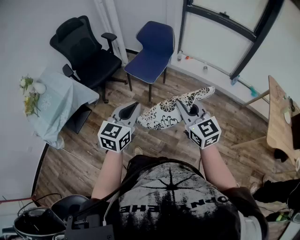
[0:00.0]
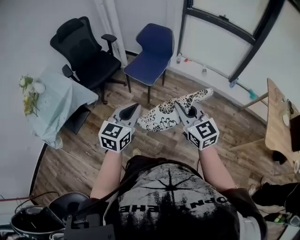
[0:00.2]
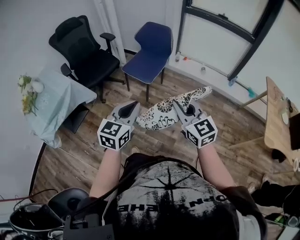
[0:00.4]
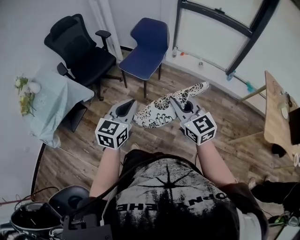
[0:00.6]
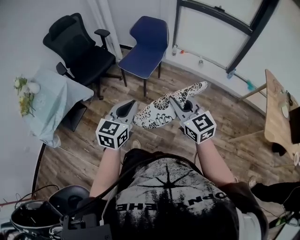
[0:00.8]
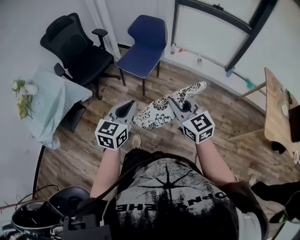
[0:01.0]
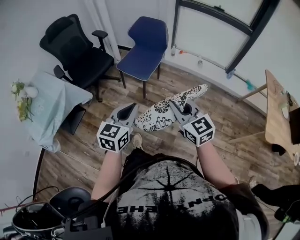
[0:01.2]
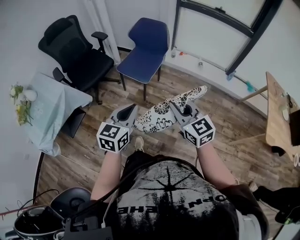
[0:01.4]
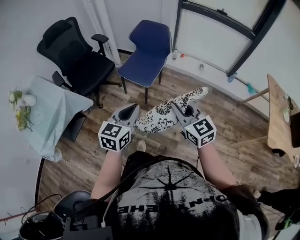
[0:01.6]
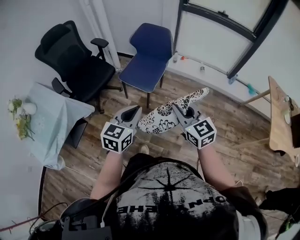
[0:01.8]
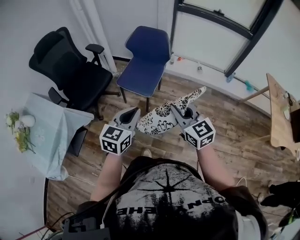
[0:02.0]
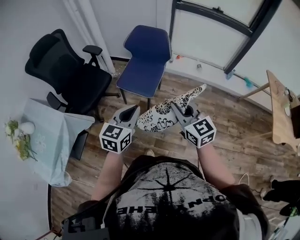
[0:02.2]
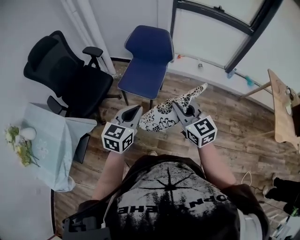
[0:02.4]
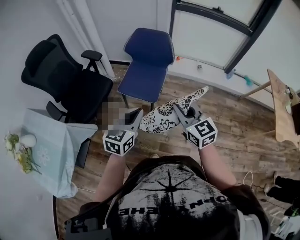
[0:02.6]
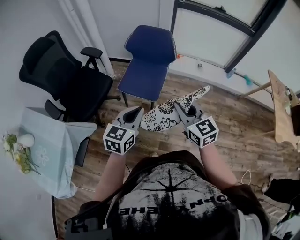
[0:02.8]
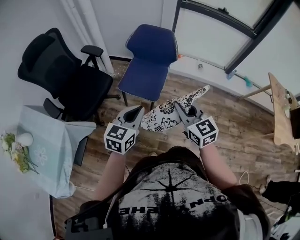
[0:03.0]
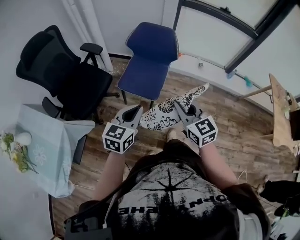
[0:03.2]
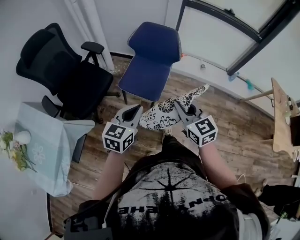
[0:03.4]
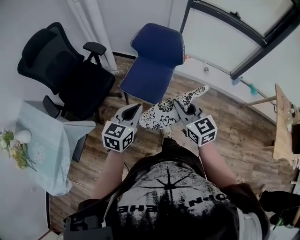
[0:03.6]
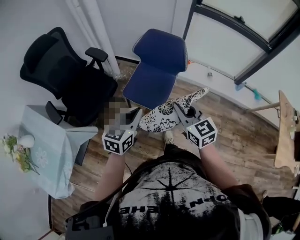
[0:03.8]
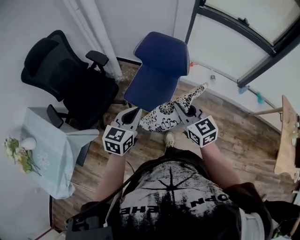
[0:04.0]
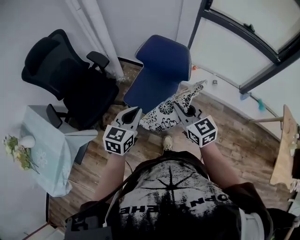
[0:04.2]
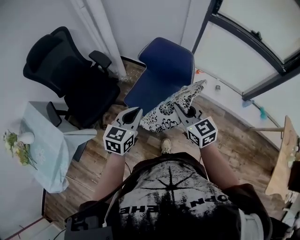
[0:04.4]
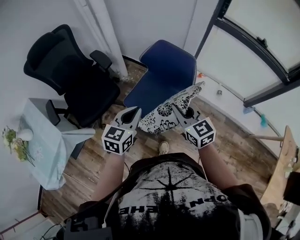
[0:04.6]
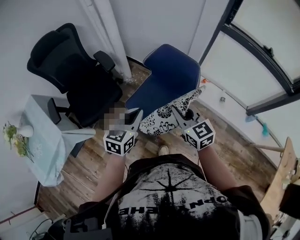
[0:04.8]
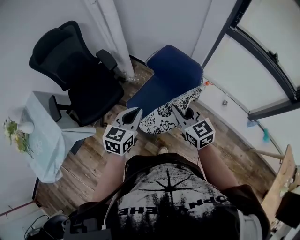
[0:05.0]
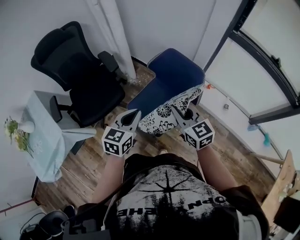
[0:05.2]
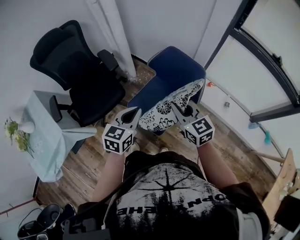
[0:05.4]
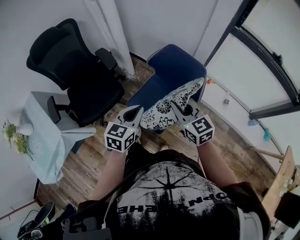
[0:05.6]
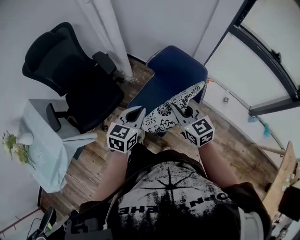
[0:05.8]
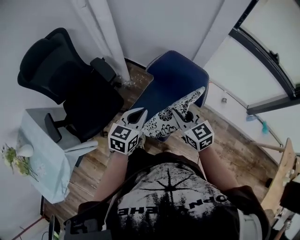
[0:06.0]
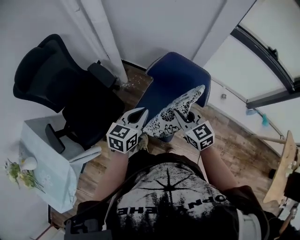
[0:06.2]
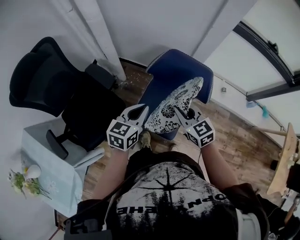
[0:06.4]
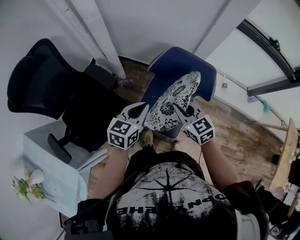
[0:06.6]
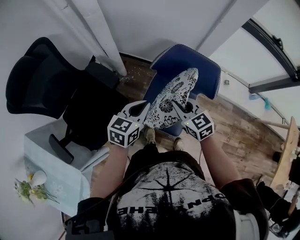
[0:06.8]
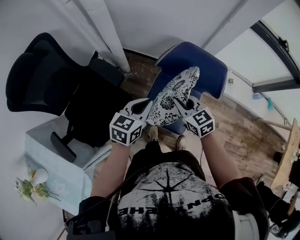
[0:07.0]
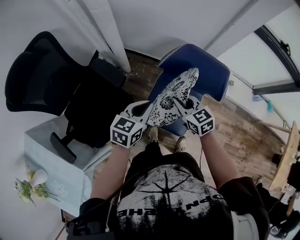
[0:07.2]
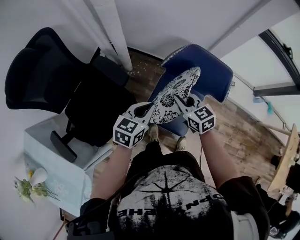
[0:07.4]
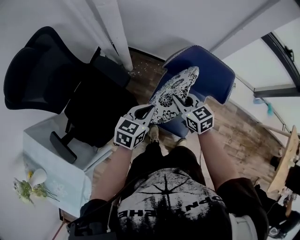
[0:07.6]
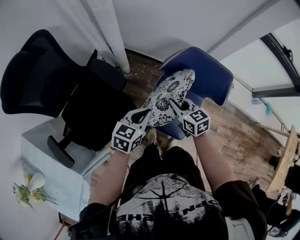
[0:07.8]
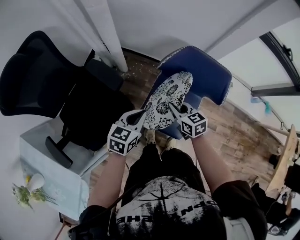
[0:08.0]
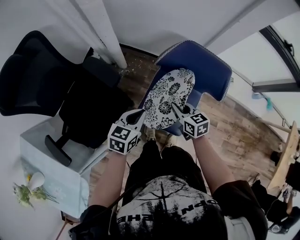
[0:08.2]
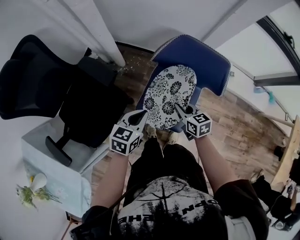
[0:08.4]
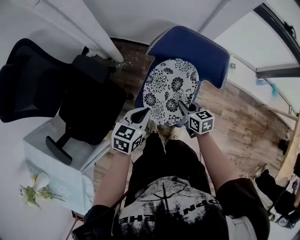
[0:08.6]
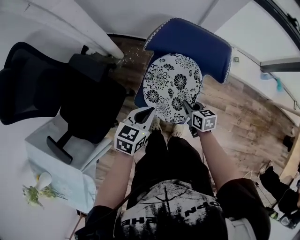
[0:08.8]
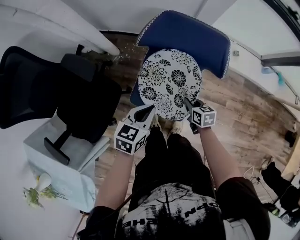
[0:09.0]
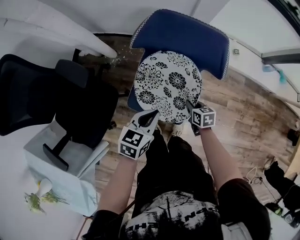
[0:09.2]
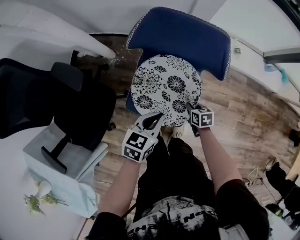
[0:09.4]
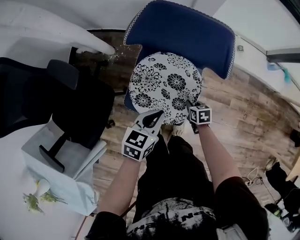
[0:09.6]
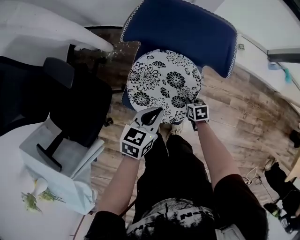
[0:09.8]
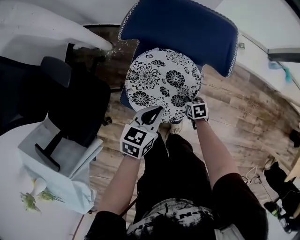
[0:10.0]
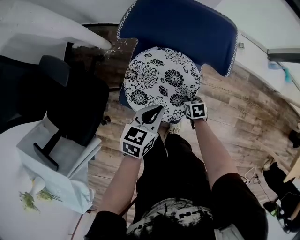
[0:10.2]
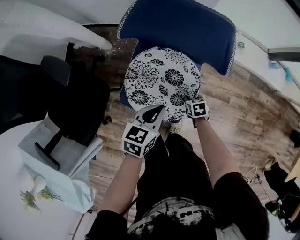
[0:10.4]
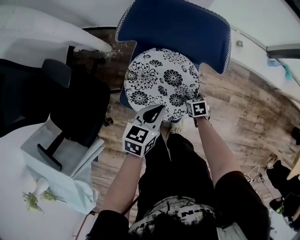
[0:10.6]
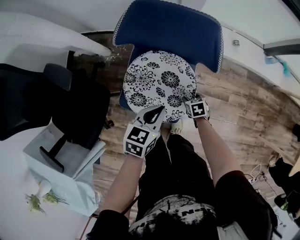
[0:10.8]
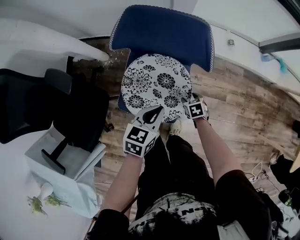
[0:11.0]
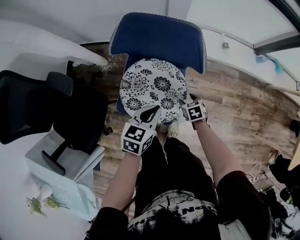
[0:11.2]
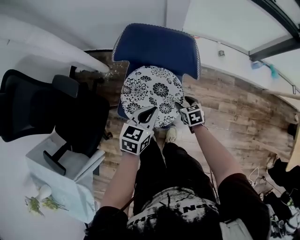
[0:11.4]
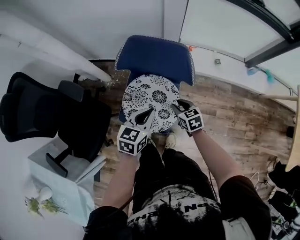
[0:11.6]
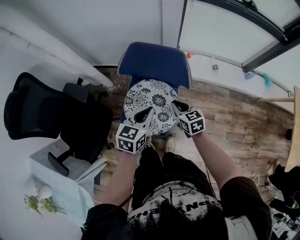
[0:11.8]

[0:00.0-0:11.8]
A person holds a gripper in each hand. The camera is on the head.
0:00.0 to 0:01.4: The right gripper ends up some 5 cm from where it was, while the left gripper changes place by roughly 5 cm.
0:01.4 to 0:03.0: The two grippers go some 25 cm forward and to the left.
0:03.0 to 0:04.4: Both grippers travel together forward, approximately 20 cm.
0:04.4 to 0:06.0: The grippers both shift forward by some 15 cm.
0:06.0 to 0:07.4: Both grippers move to the left, forward and downward, some 15 cm.
0:07.4 to 0:08.8: The right gripper travels downward, to the right and backward by approximately 25 cm, and changes its angle by about 30 degrees; the left gripper travels downward and to the right by about 10 cm.
0:08.8 to 0:10.4: The right gripper travels downward and to the right by approximately 25 cm, and rotates about 20 degrees, while the left gripper heads to the right and downward, covering roughly 15 cm.
0:10.4 to 0:11.8: The left gripper travels upward by about 15 cm, while the right gripper goes roughly 30 cm upward, tips its fingers upward by some 30 degrees, and opens, then closes once more.

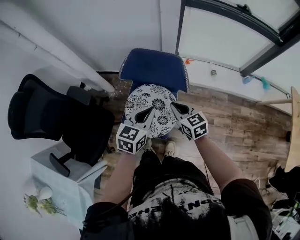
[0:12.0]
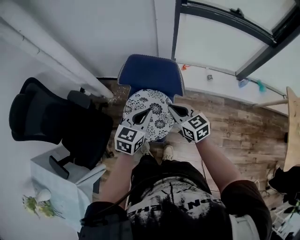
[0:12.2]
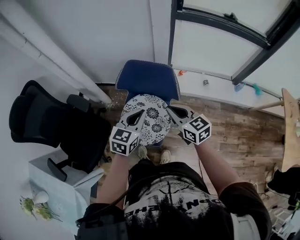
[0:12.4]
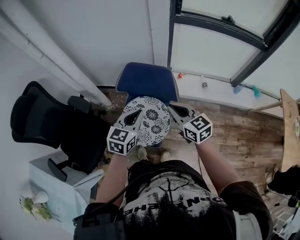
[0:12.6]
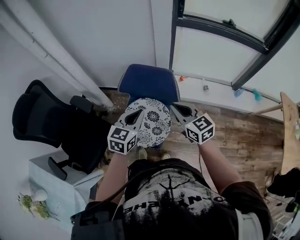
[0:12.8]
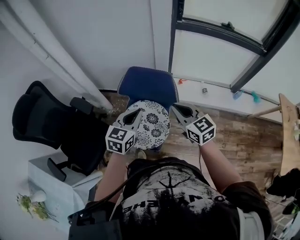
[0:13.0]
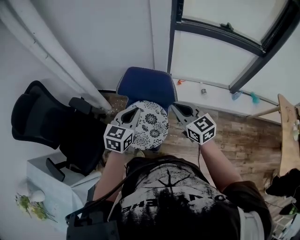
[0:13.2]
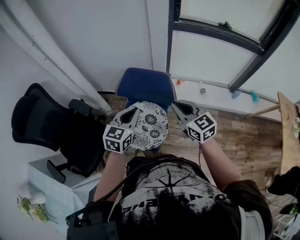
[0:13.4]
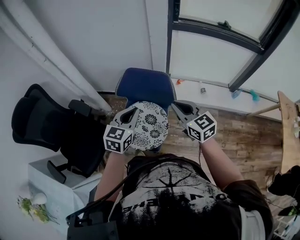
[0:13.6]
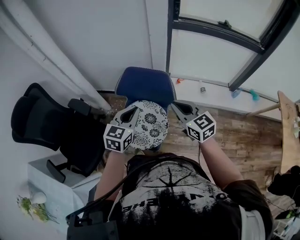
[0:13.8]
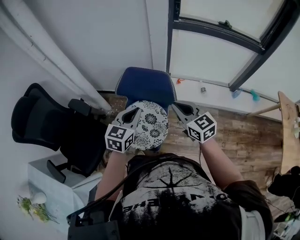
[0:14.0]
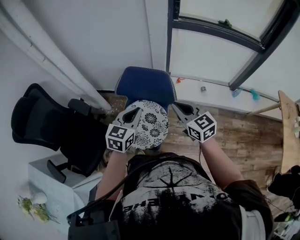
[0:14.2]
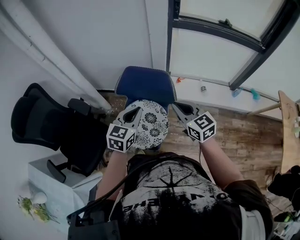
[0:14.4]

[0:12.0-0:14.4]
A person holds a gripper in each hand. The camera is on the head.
0:12.0 to 0:13.2: The right gripper travels upward by some 15 cm, while the left gripper shifts about 10 cm upward.
0:13.2 to 0:14.4: The grippers make only small movements.

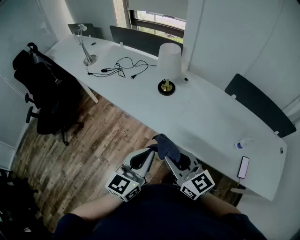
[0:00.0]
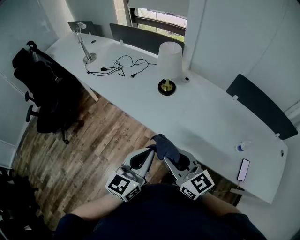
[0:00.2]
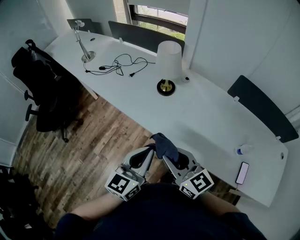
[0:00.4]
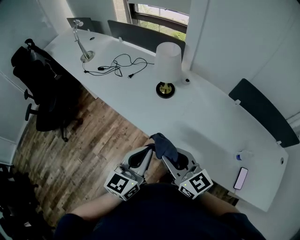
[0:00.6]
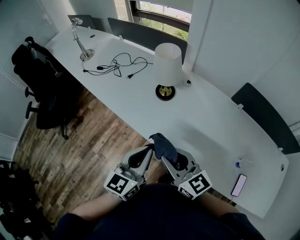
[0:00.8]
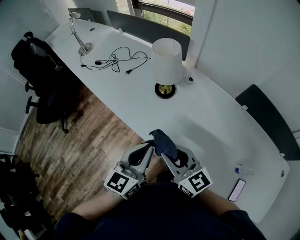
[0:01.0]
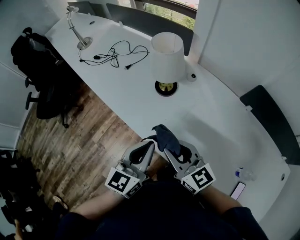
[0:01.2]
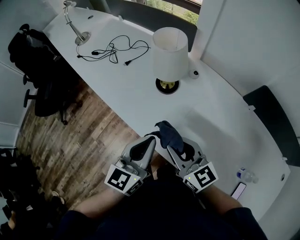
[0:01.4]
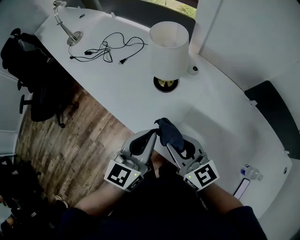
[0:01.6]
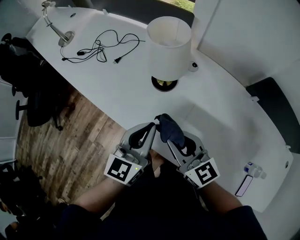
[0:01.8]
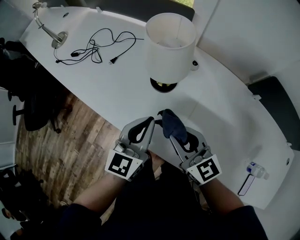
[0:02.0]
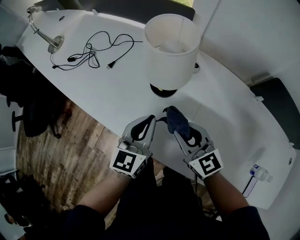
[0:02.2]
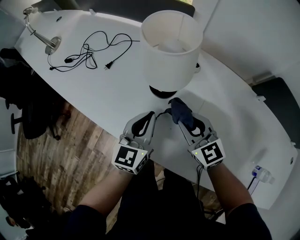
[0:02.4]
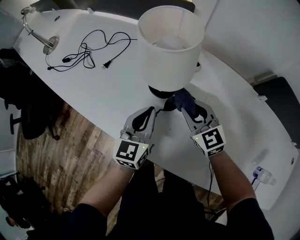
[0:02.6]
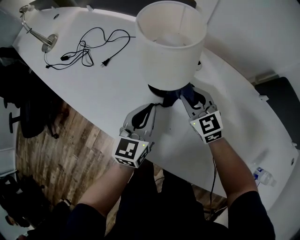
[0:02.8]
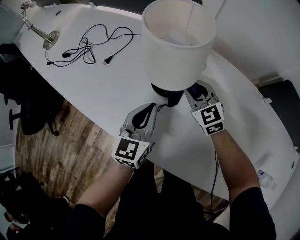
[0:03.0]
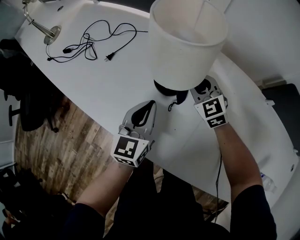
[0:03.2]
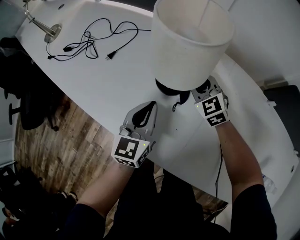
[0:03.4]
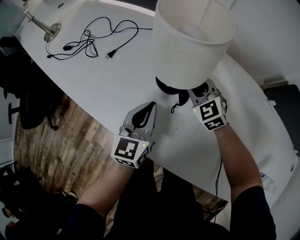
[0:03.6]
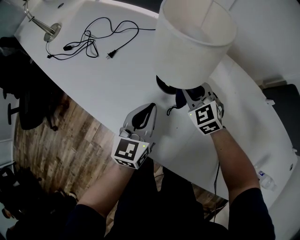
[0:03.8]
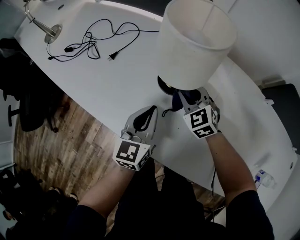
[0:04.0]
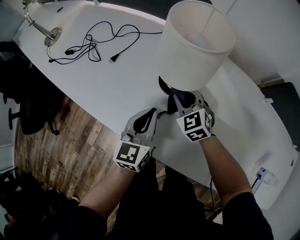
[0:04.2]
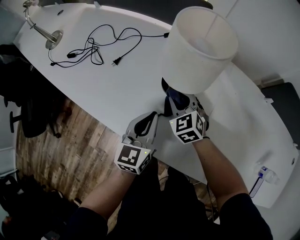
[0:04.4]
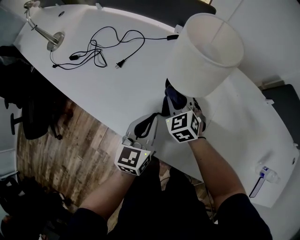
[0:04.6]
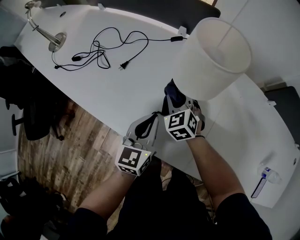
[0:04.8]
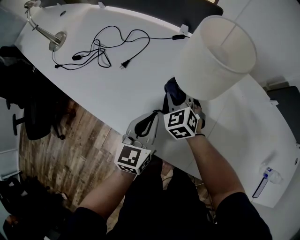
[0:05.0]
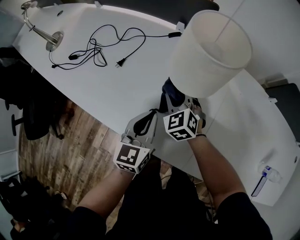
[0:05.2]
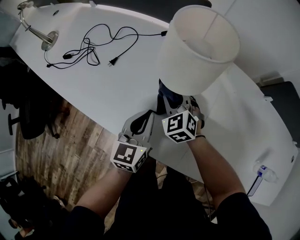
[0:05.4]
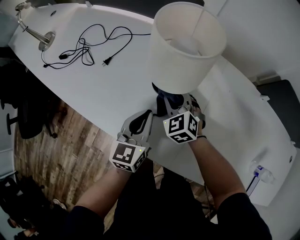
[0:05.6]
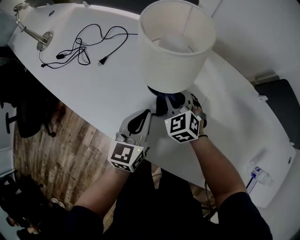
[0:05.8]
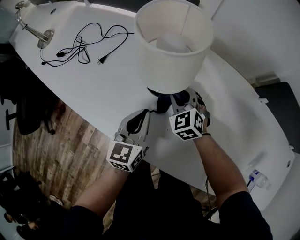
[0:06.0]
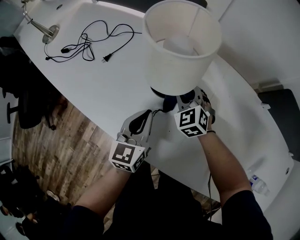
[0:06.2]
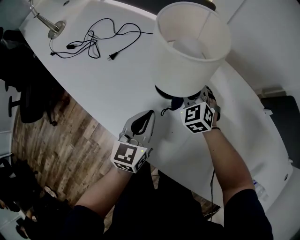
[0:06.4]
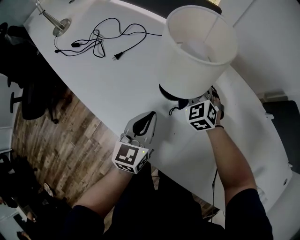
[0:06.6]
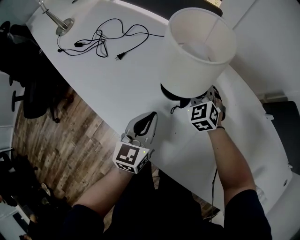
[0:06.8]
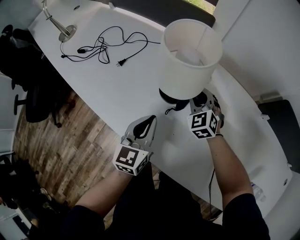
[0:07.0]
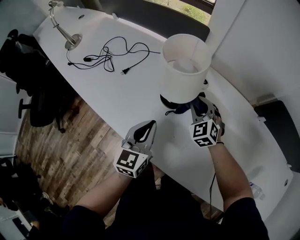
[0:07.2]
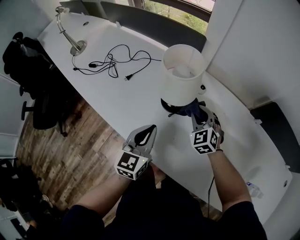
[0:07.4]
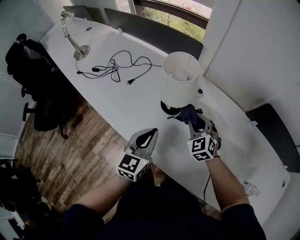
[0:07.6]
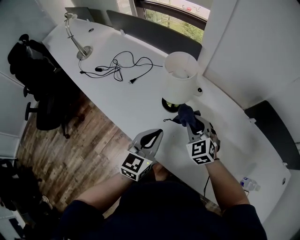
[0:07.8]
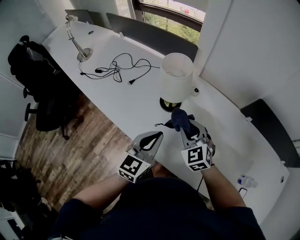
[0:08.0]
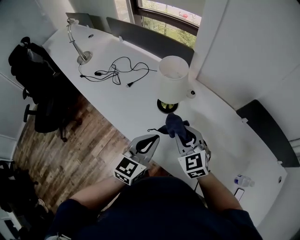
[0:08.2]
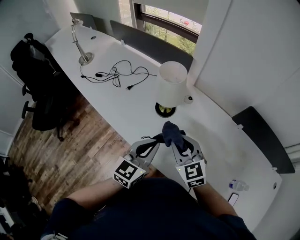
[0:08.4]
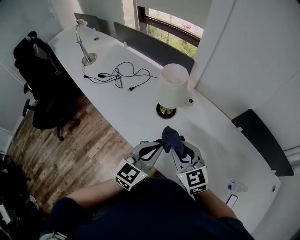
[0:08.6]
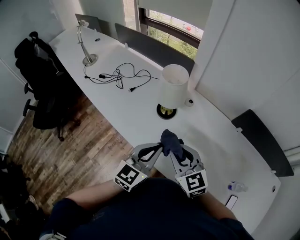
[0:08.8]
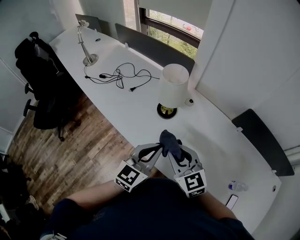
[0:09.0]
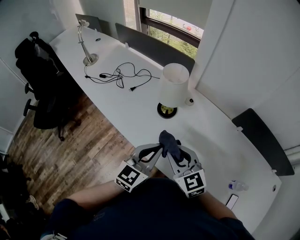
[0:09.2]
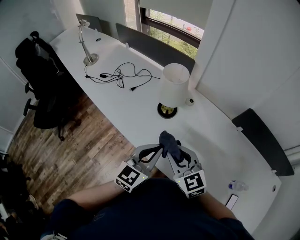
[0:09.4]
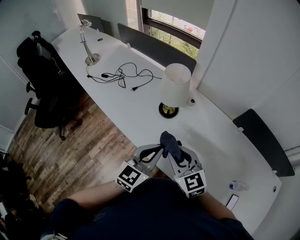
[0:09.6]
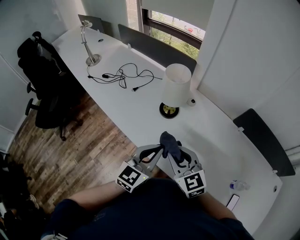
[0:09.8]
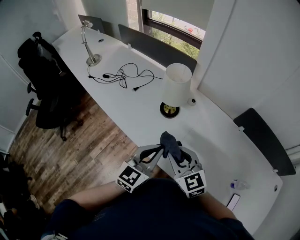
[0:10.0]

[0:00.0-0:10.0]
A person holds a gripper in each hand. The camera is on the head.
0:00.0 to 0:01.4: Both grippers travel together forward and to the right, some 25 cm.
0:01.4 to 0:02.8: Both grippers travel together forward and downward, about 30 cm. The right gripper rotates approximately 30 degrees.
0:02.8 to 0:04.2: The right gripper shifts about 5 cm to the left.
0:04.2 to 0:05.8: The right gripper reaches some 5 cm to the left, then returns.
0:05.8 to 0:07.2: The right gripper heads to the right and upward, covering roughly 10 cm. Meanwhile the left gripper shifts about 5 cm upward.
0:07.2 to 0:08.6: The left gripper moves upward, backward and to the right, some 20 cm. Meanwhile the right gripper goes approximately 30 cm backward and upward, and rotates some 30 degrees.
0:08.6 to 0:10.0: There are only small adjustments of the grippers.
